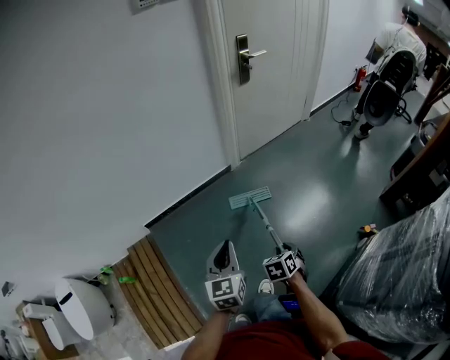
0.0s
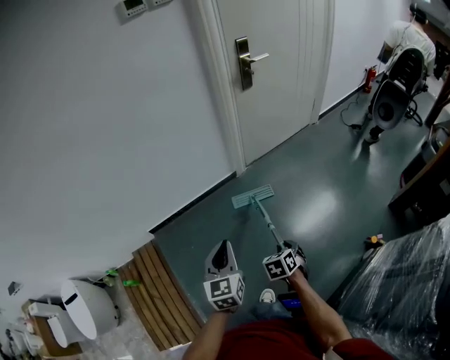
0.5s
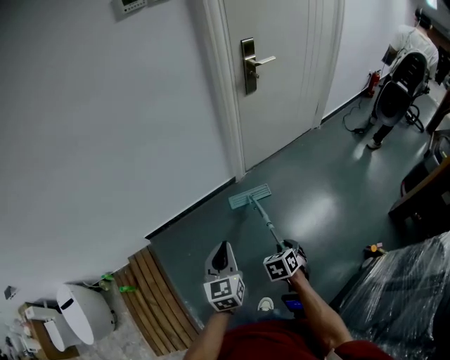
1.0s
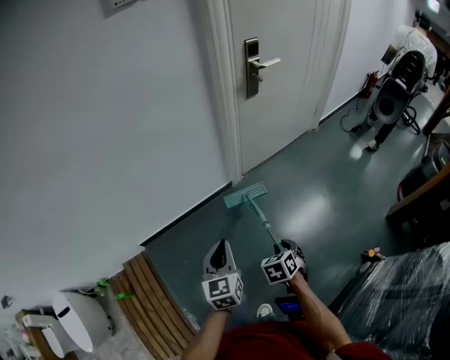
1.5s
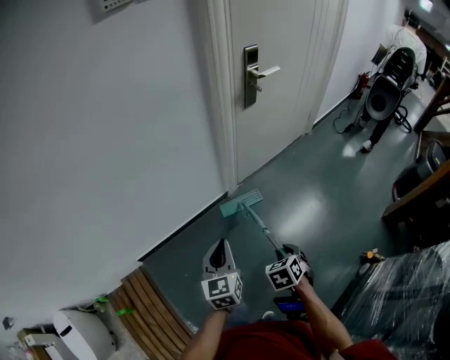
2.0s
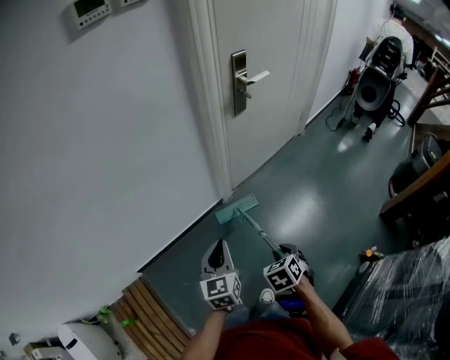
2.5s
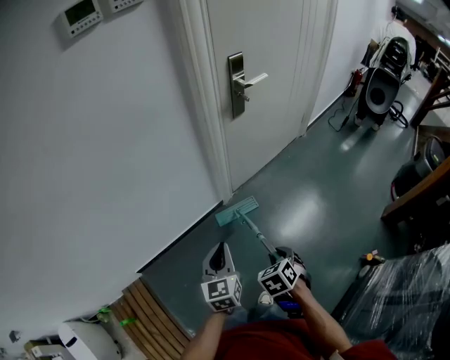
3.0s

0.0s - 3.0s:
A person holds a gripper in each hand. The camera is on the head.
0.0s - 1.5s: Both grippers travel together forward, about 25 cm.
1.5s - 3.0s: The right gripper shifts about 10 cm forward and upward; the left gripper is displaced forward by some 15 cm.

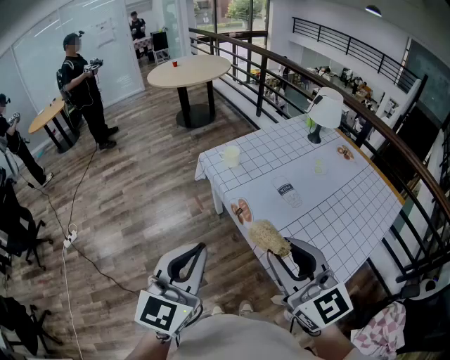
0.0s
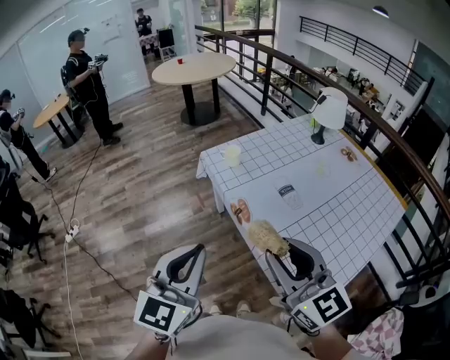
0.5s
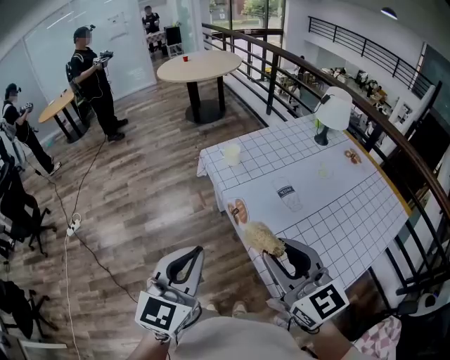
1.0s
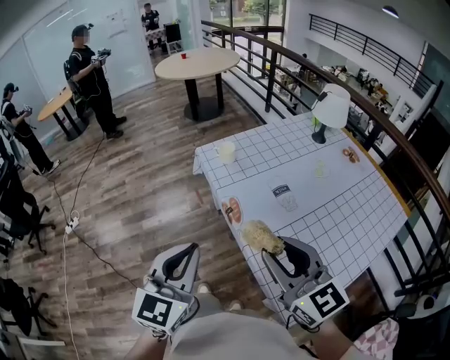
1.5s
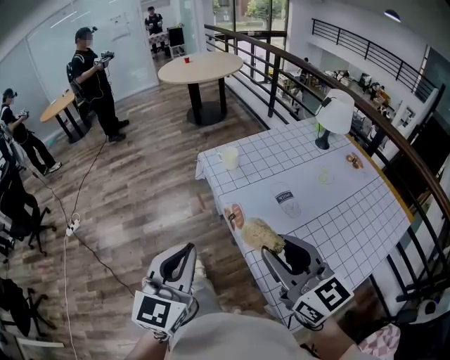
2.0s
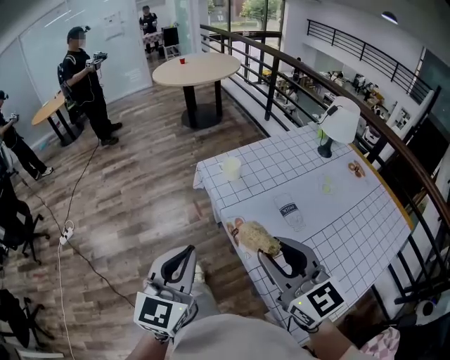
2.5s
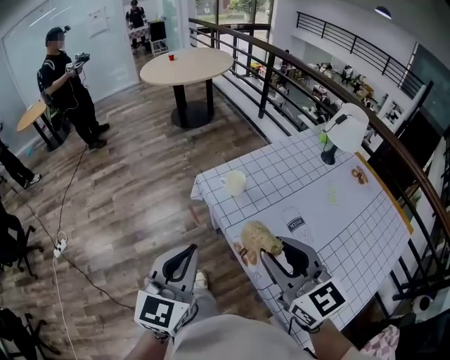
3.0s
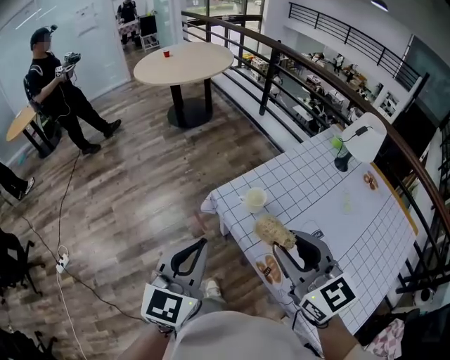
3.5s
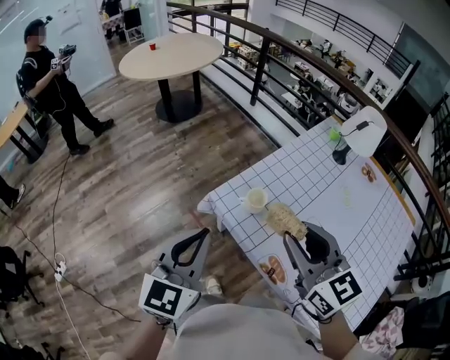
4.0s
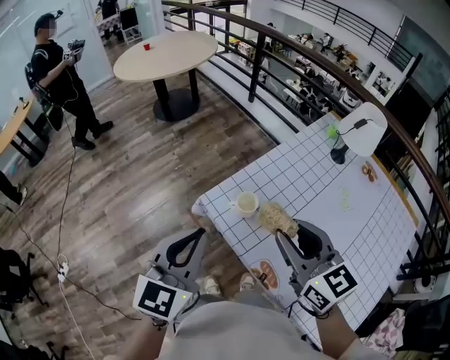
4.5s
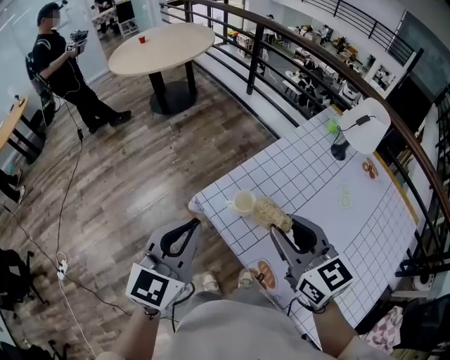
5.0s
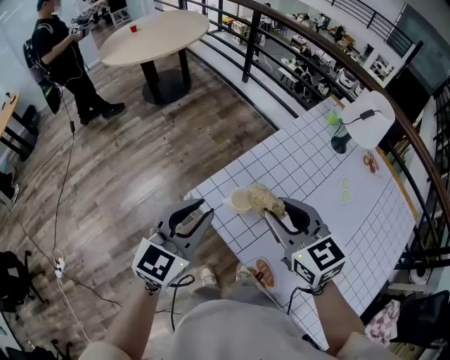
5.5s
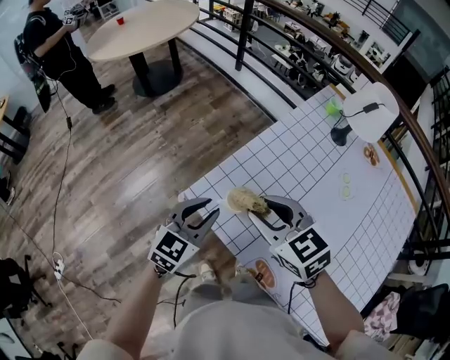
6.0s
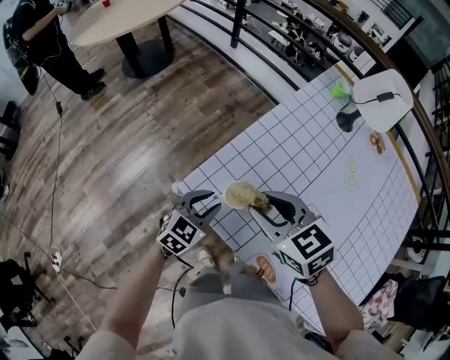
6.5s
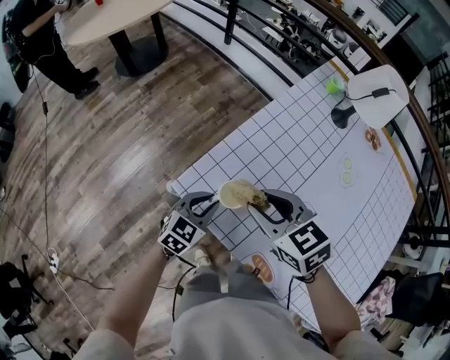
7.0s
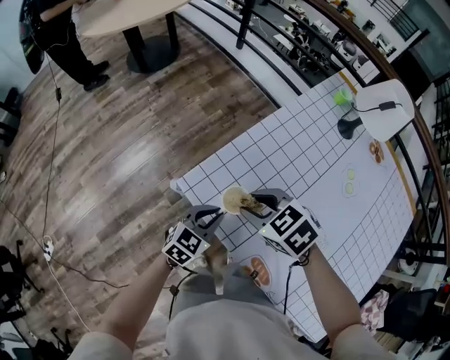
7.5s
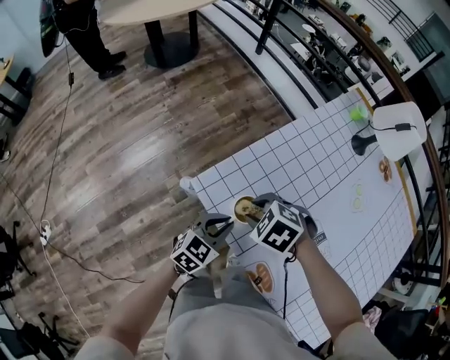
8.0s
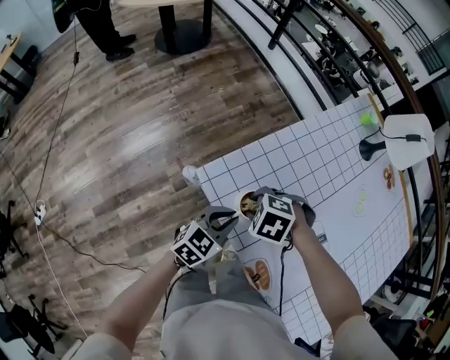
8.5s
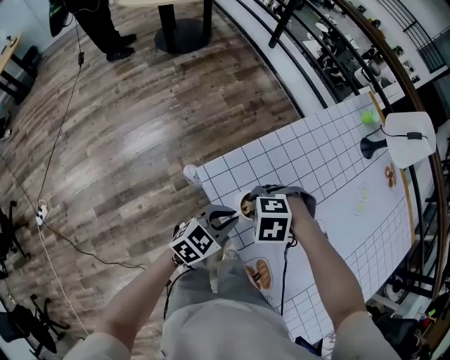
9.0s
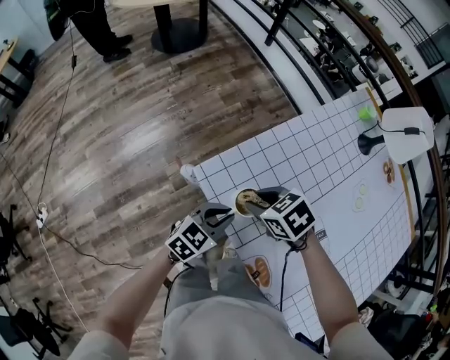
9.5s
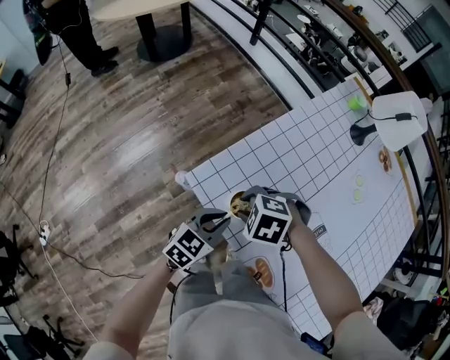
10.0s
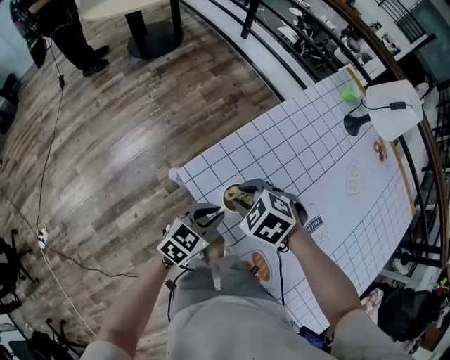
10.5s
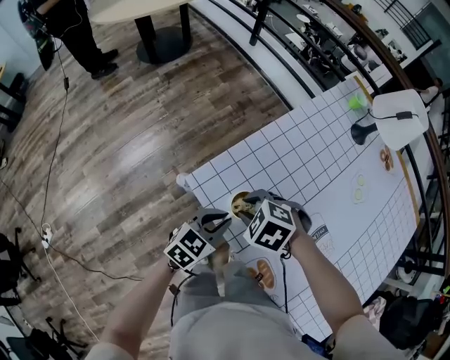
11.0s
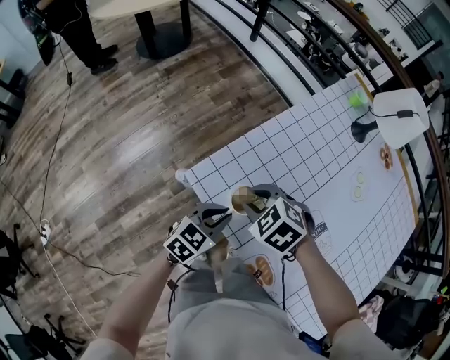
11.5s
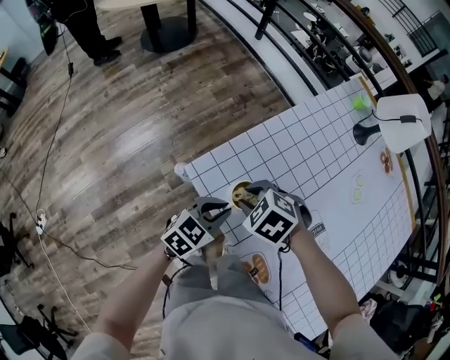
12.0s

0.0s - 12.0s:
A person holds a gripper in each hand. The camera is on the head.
0.0s - 2.0s: The right gripper travels to the right and forward by about 10 cm. Meanwhile the left gripper changes place by about 5 cm.
2.0s - 4.0s: The grippers both shift forward by roughly 35 cm. The right gripper changes its angle by roughly 20 degrees, while the left gripper changes its angle by roughly 20 degrees.
4.0s - 6.0s: The left gripper moves downward, forward and to the right, about 25 cm, and swivels roughly 20 degrees; the right gripper goes approximately 20 cm forward and downward, and changes its angle by about 20 degrees.
6.0s - 8.0s: The two grippers go roughly 15 cm downward. The right gripper tilts its fingers approximately 40 degrees downward.

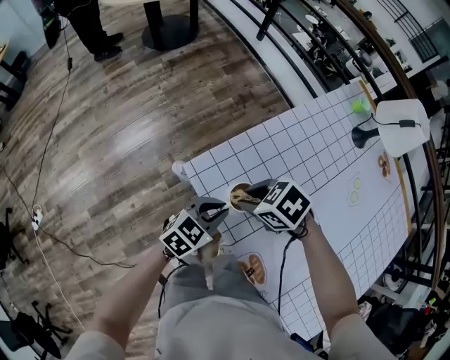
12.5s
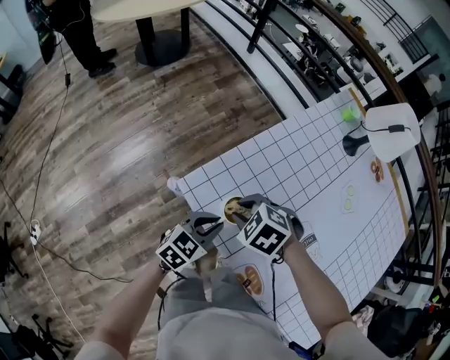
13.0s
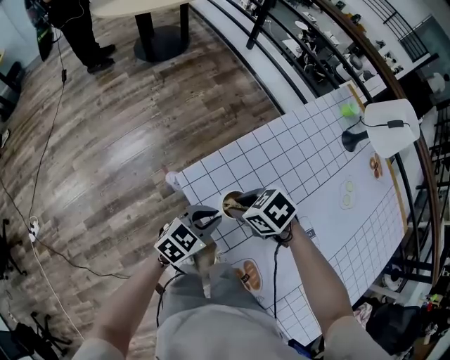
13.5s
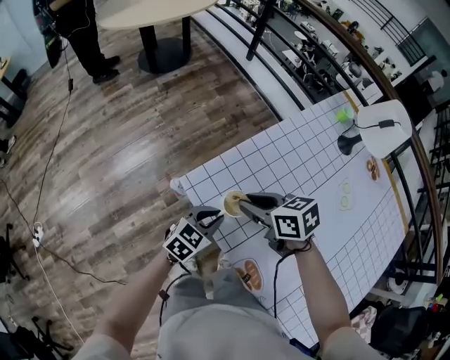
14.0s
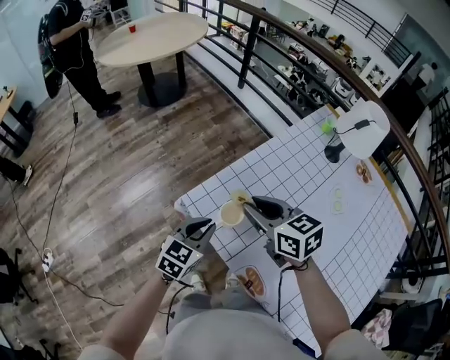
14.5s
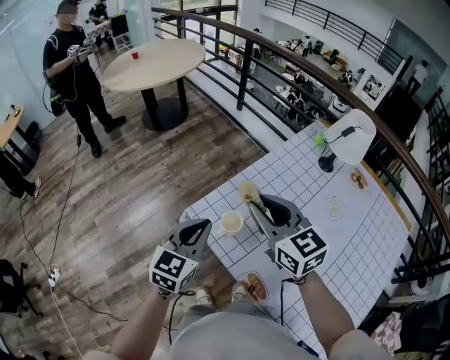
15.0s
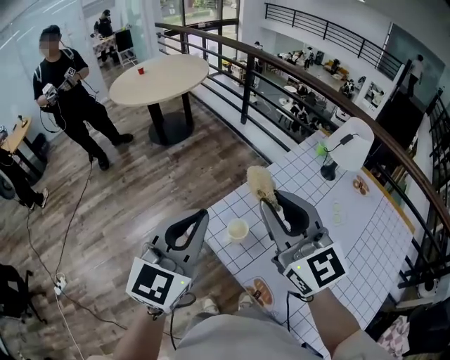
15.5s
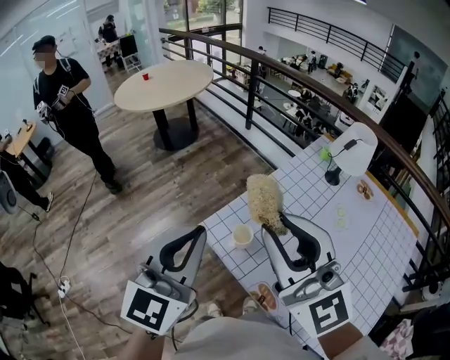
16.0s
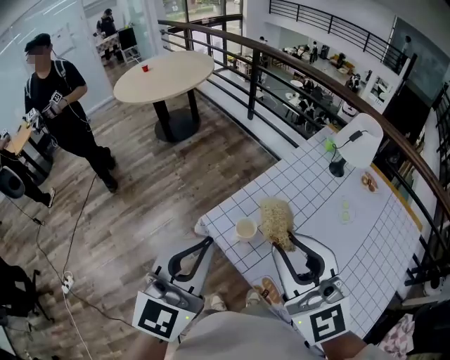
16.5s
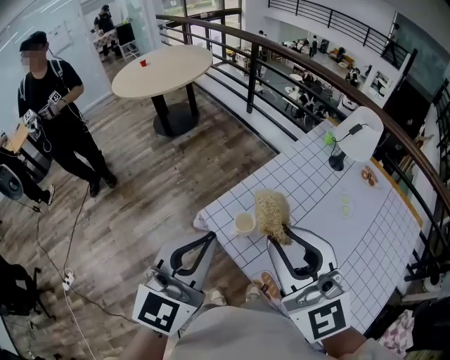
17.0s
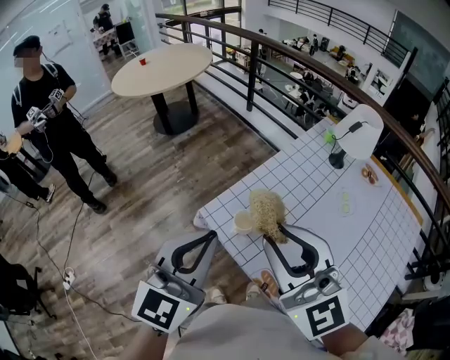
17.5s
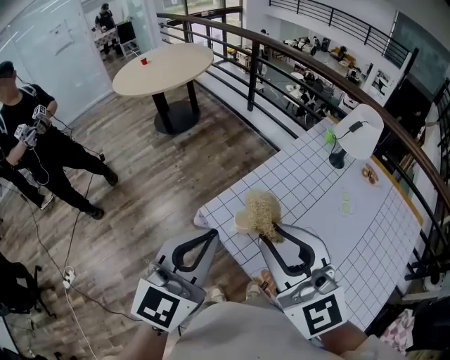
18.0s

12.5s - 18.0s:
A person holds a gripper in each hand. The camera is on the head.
12.5s - 14.5s: The right gripper goes some 15 cm upward, and angles its fingers upward, by approximately 30 degrees; the left gripper shifts approximately 10 cm upward.
14.5s - 16.0s: The right gripper moves upward and backward, some 30 cm, and angles its fingers upward, by some 40 degrees, while the left gripper travels upward by about 35 cm, and rotates about 30 degrees.
16.0s - 18.0s: The right gripper moves downward, about 5 cm. Meanwhile the left gripper shifts by roughly 5 cm.

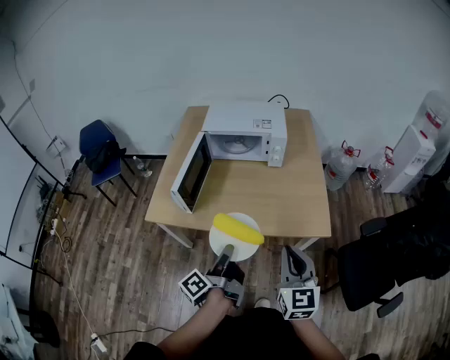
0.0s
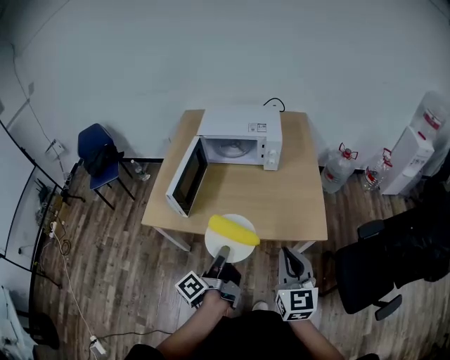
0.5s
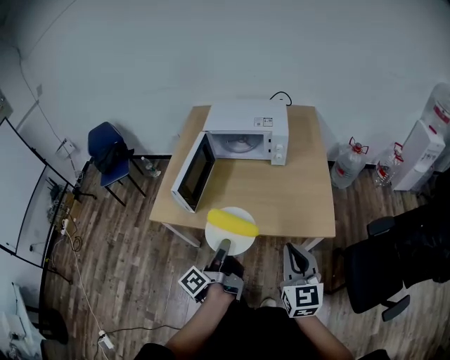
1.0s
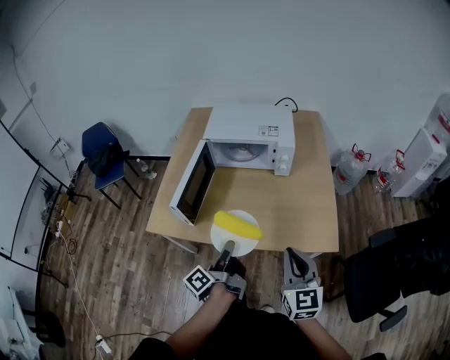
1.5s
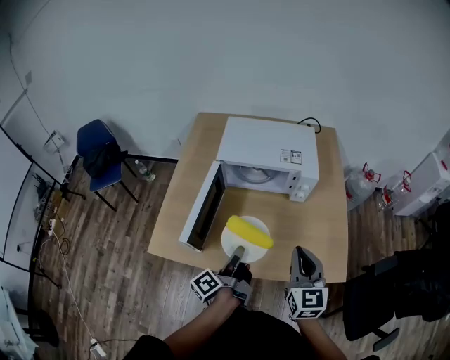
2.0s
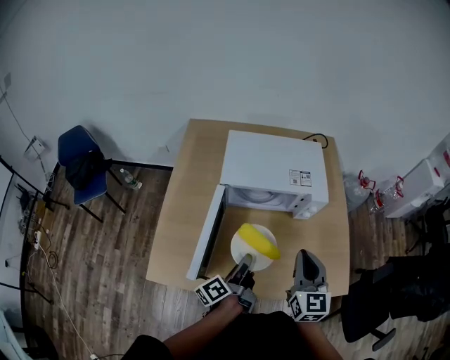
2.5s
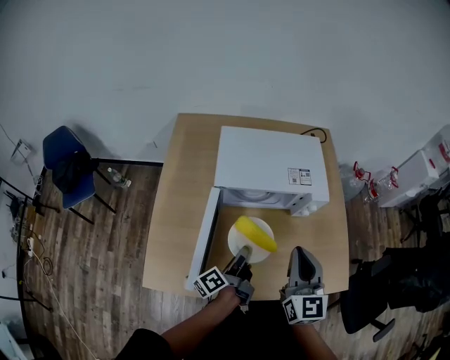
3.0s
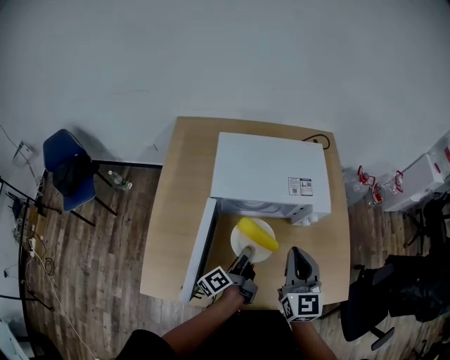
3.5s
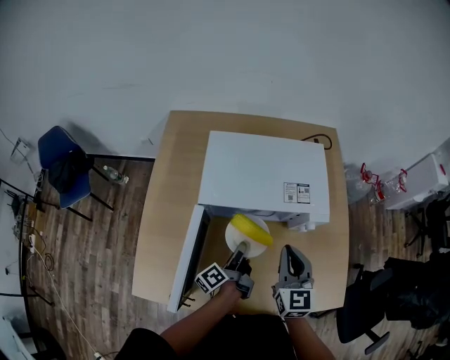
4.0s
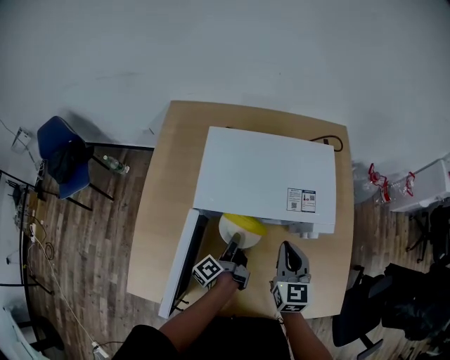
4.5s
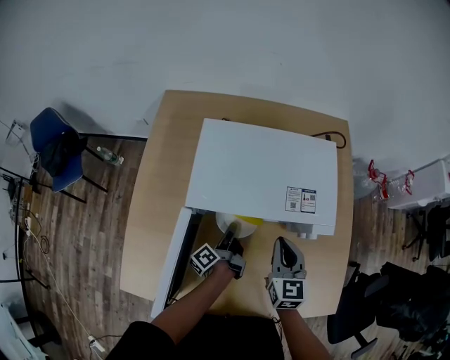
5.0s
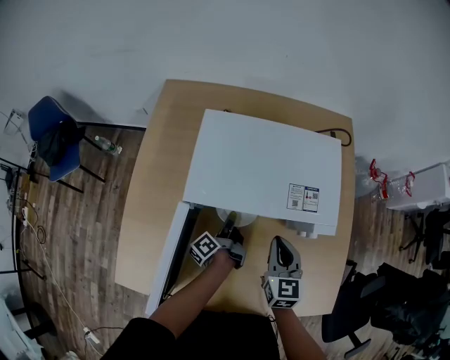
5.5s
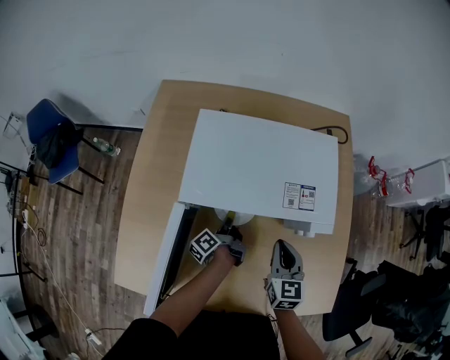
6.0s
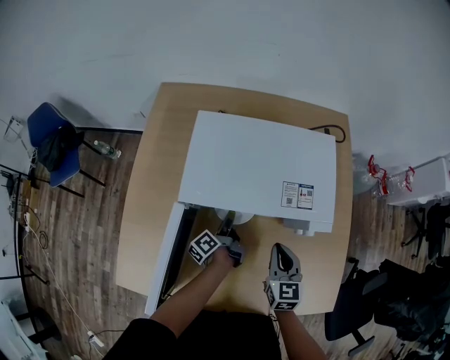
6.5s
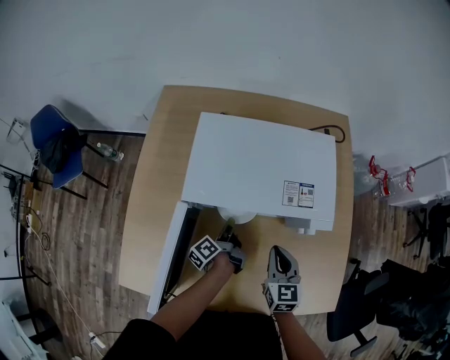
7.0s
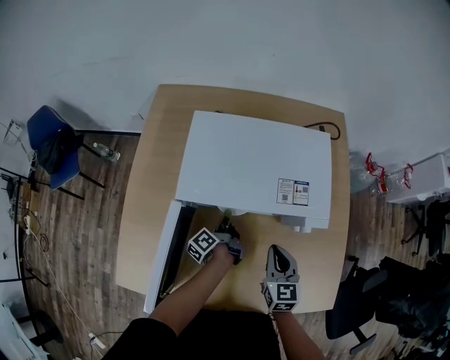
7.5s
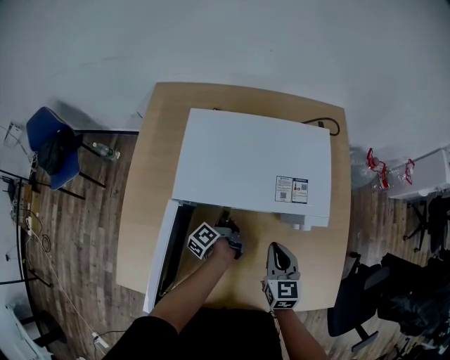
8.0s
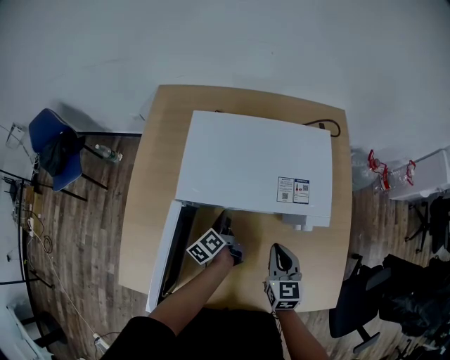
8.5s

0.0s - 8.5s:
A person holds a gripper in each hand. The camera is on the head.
0.0s - 2.0s: Both grippers move forward, some 20 cm.
2.0s - 4.0s: The left gripper goes approximately 25 cm forward and downward. The right gripper moves forward, some 20 cm.
4.0s - 6.5s: The right gripper goes some 10 cm downward, while the left gripper travels downward and forward by approximately 15 cm, and opens up.
6.5s - 8.5s: The left gripper rotates roughly 20 degrees, and closes up.
